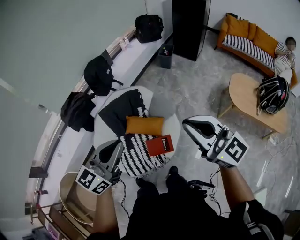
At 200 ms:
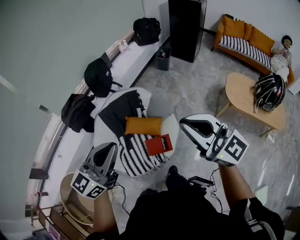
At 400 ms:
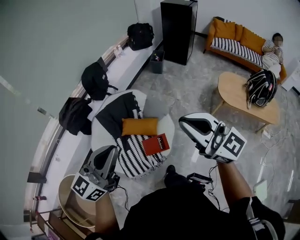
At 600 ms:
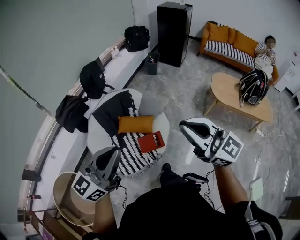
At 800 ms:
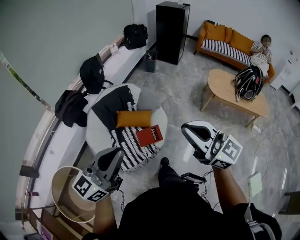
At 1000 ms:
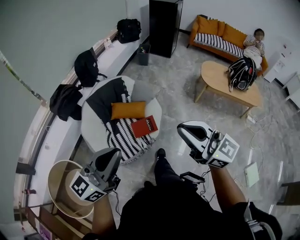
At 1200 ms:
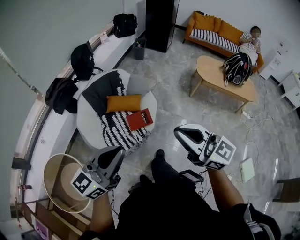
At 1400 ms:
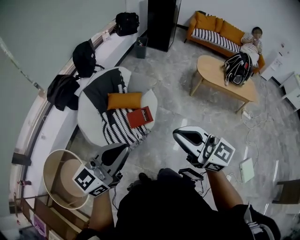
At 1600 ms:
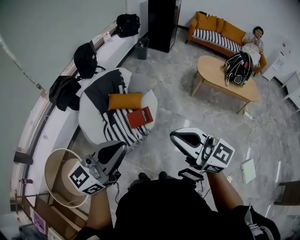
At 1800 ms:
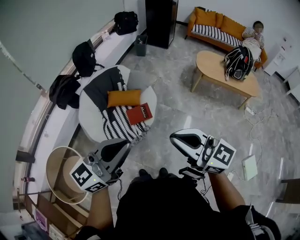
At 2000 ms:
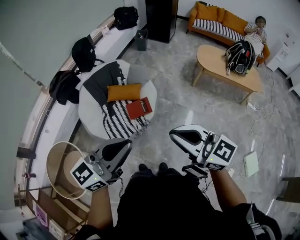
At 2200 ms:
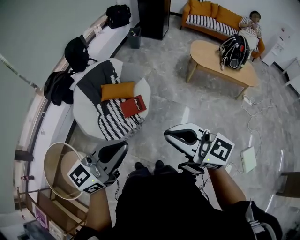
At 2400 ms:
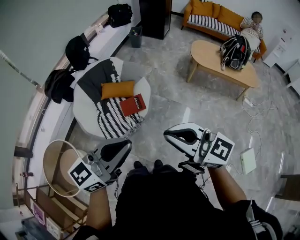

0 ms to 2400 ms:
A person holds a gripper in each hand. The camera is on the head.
0 ms to 1200 ms: The two grippers go some 35 cm backward.
1200 ms to 2400 ms: The left gripper shifts roughly 20 cm to the right and backward, while the right gripper moves backward and to the right, some 15 cm.

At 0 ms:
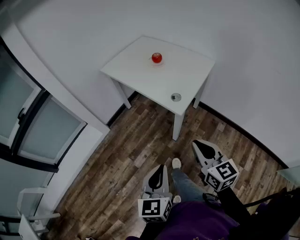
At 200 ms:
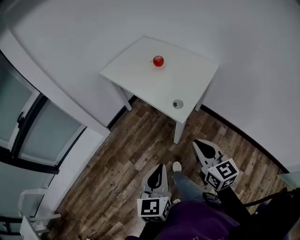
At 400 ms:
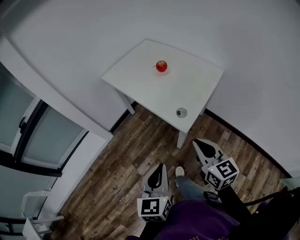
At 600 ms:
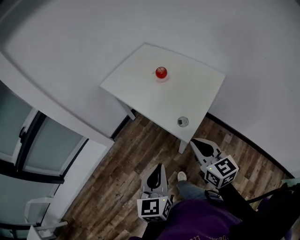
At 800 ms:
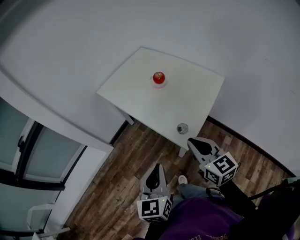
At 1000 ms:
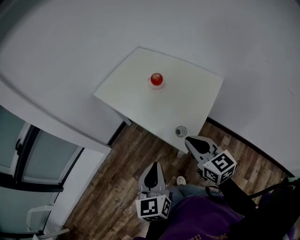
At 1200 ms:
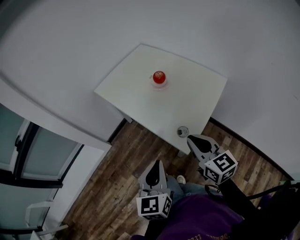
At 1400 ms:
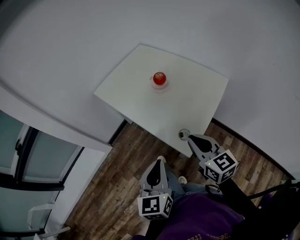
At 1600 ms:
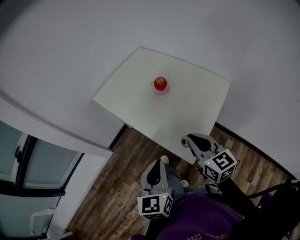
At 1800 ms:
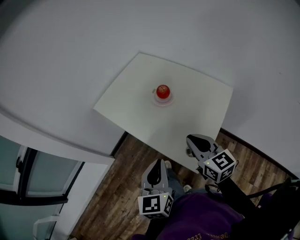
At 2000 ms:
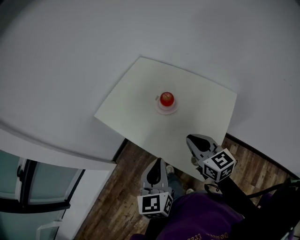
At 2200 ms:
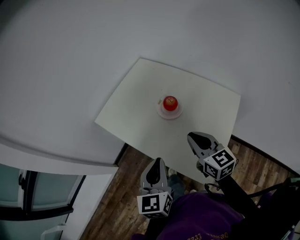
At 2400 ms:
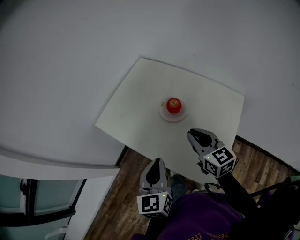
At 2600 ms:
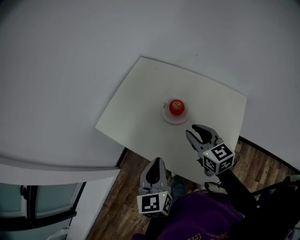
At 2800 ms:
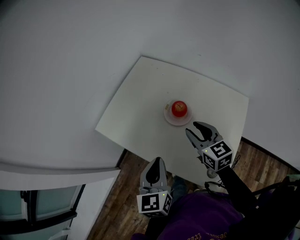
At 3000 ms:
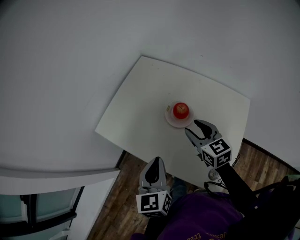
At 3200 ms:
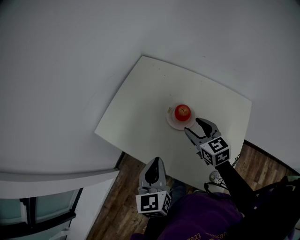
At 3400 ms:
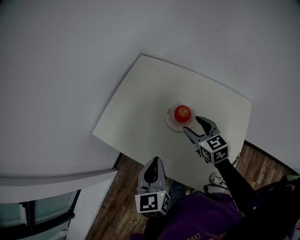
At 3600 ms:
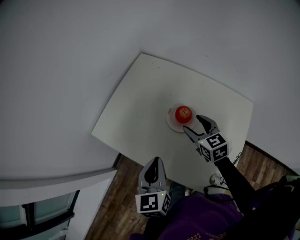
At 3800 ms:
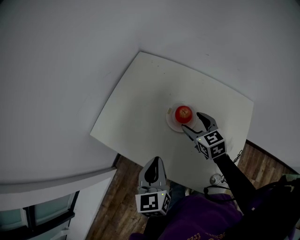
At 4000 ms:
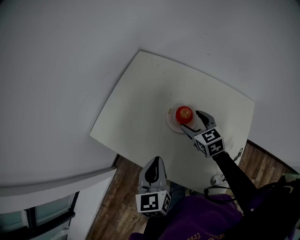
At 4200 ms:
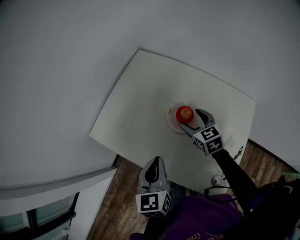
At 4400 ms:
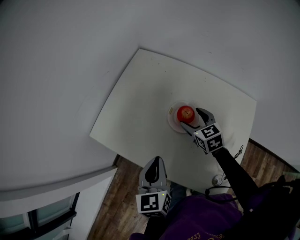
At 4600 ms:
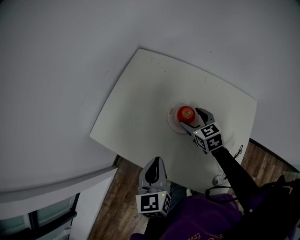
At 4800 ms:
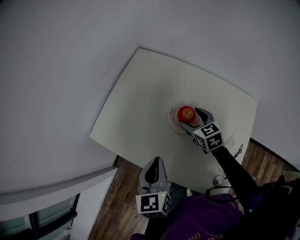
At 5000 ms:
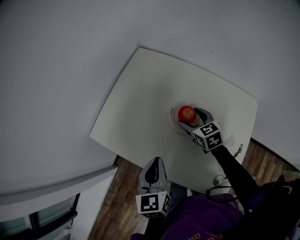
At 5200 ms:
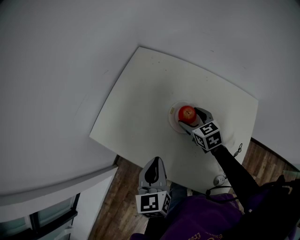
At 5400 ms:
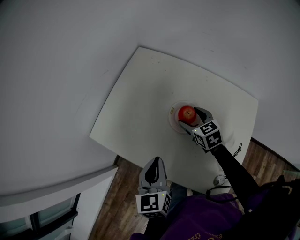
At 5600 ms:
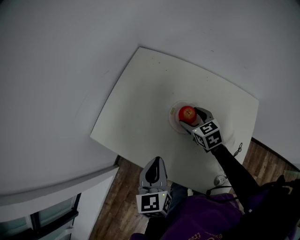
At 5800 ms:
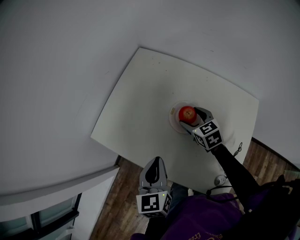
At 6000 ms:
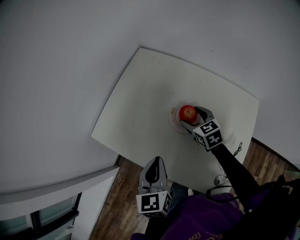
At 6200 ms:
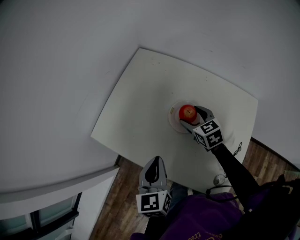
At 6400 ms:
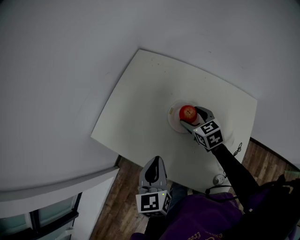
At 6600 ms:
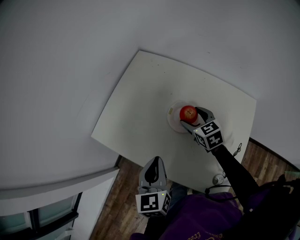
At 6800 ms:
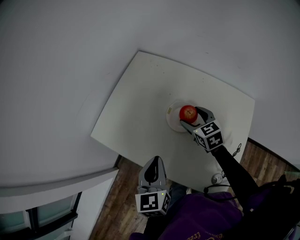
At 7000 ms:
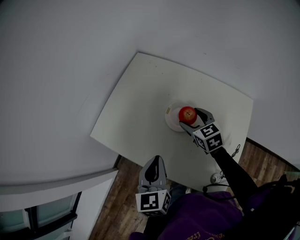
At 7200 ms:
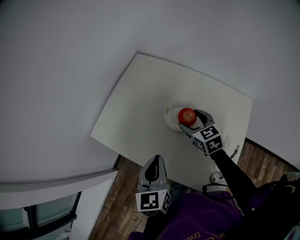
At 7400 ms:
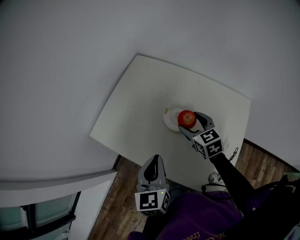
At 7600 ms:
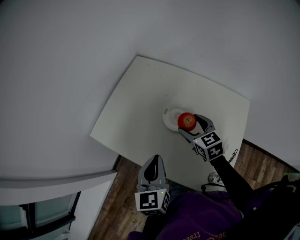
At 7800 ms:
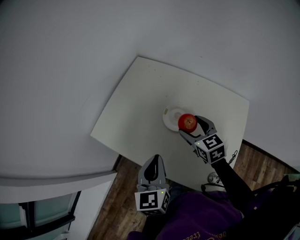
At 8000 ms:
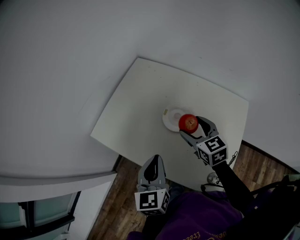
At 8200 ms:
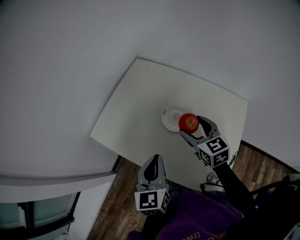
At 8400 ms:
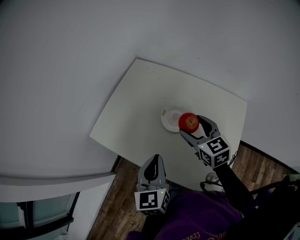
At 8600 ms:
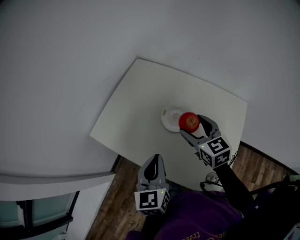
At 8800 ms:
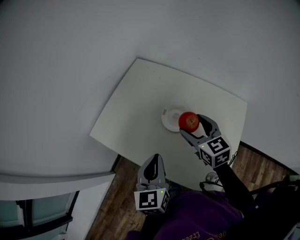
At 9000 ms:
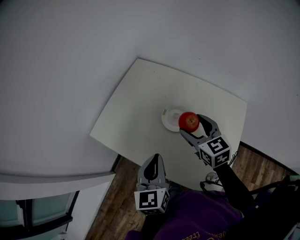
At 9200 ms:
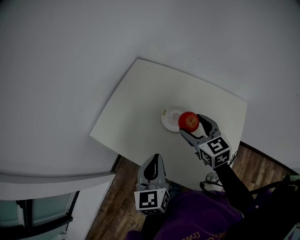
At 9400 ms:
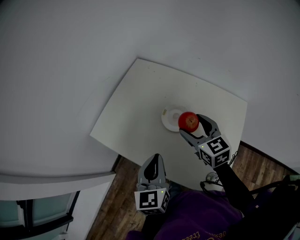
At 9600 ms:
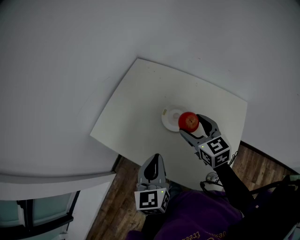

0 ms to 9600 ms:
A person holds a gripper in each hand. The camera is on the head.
0 ms to 1600 ms: The two grippers go approximately 30 cm forward.
1600 ms to 3200 ms: Both grippers move forward, some 30 cm. The right gripper opens up.
3200 ms to 4800 ms: The right gripper moves downward and forward, some 10 cm. The left gripper ends up some 5 cm from where it was.
4800 ms to 6400 ms: Both grippers stay about where they are.
6400 ms to 8000 ms: The right gripper travels upward and backward by approximately 10 cm.
8000 ms to 9600 ms: The grippers stay close to where they were, moving slightly.

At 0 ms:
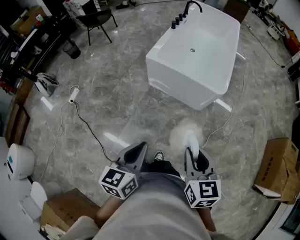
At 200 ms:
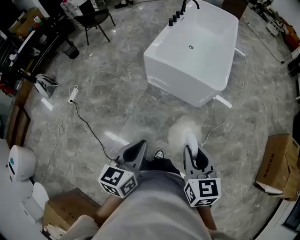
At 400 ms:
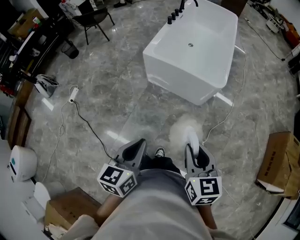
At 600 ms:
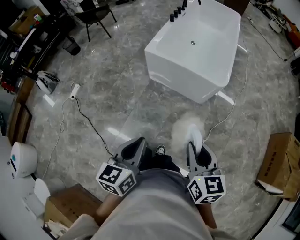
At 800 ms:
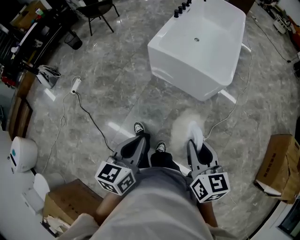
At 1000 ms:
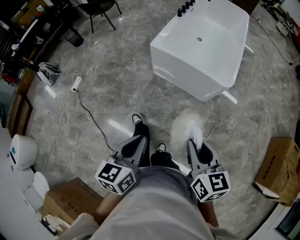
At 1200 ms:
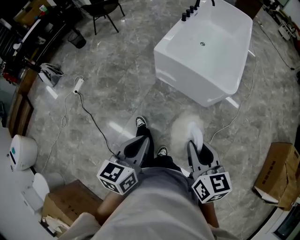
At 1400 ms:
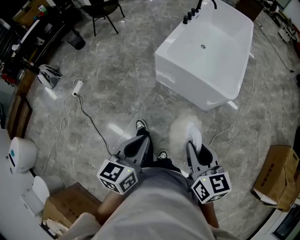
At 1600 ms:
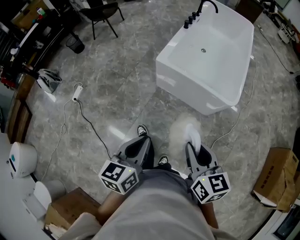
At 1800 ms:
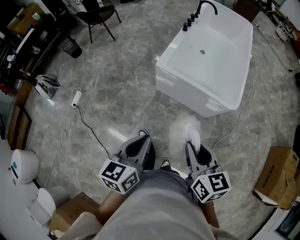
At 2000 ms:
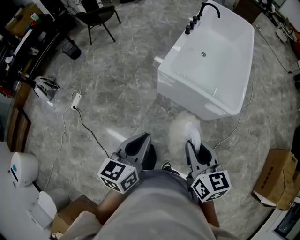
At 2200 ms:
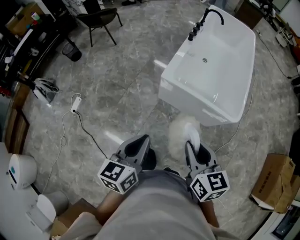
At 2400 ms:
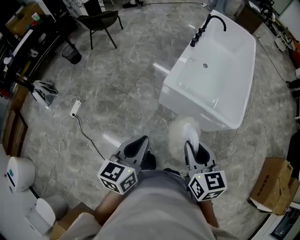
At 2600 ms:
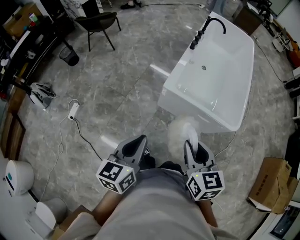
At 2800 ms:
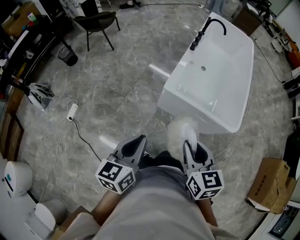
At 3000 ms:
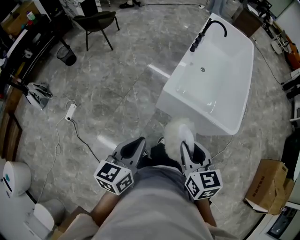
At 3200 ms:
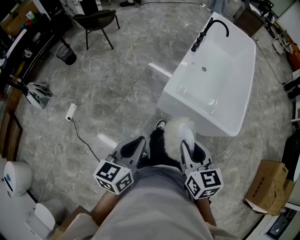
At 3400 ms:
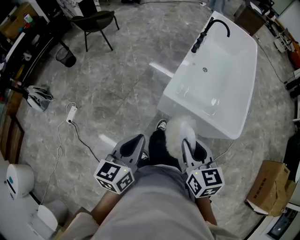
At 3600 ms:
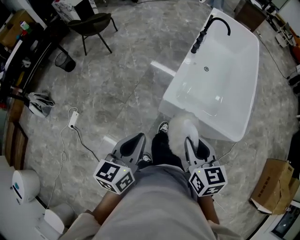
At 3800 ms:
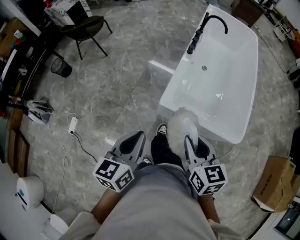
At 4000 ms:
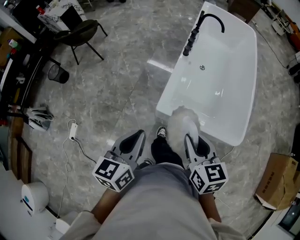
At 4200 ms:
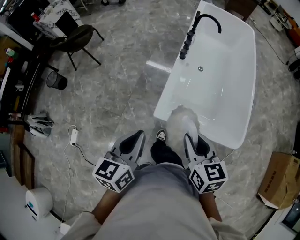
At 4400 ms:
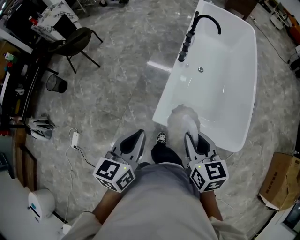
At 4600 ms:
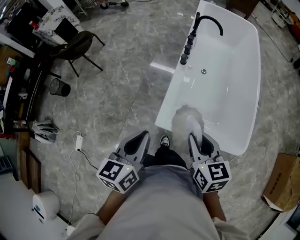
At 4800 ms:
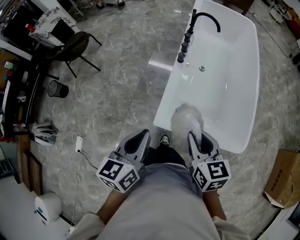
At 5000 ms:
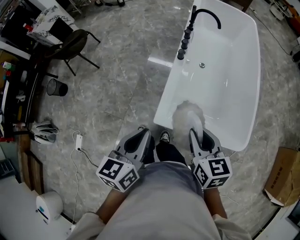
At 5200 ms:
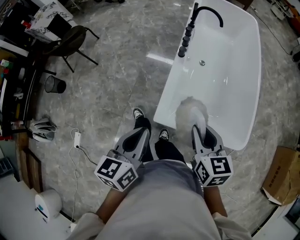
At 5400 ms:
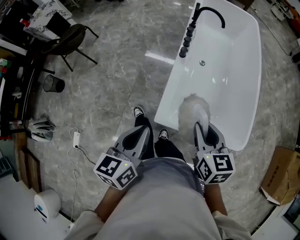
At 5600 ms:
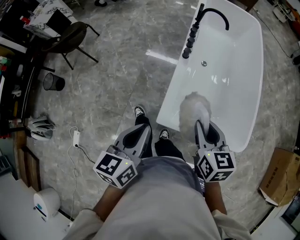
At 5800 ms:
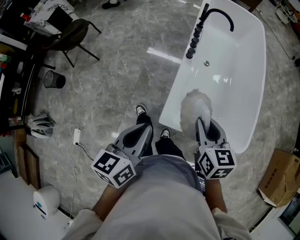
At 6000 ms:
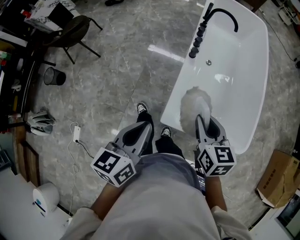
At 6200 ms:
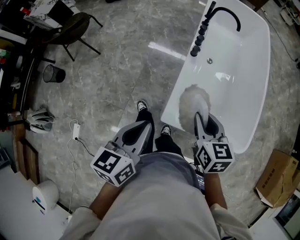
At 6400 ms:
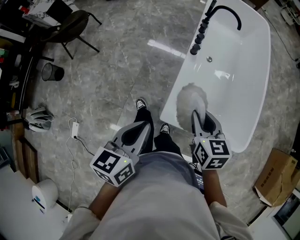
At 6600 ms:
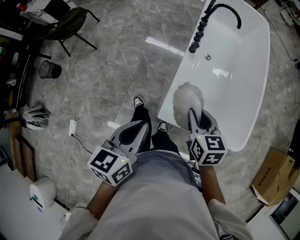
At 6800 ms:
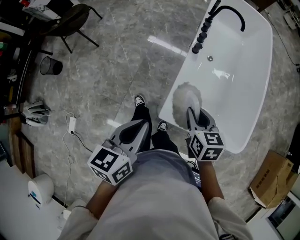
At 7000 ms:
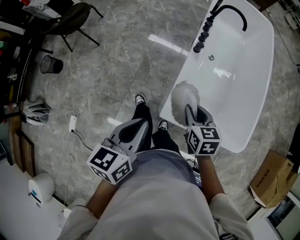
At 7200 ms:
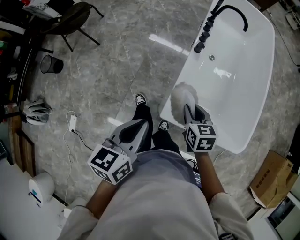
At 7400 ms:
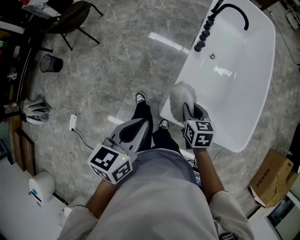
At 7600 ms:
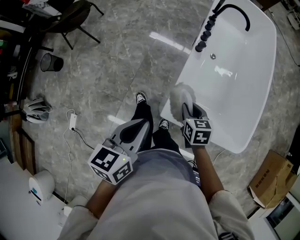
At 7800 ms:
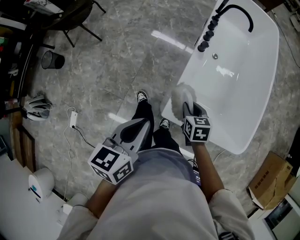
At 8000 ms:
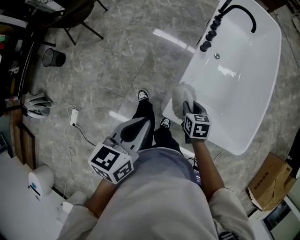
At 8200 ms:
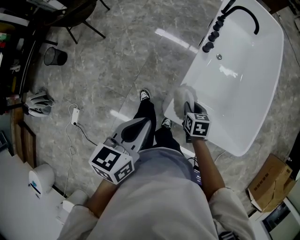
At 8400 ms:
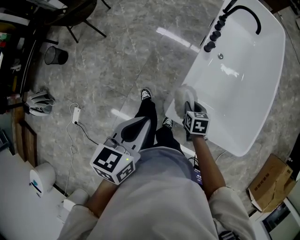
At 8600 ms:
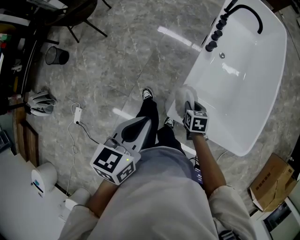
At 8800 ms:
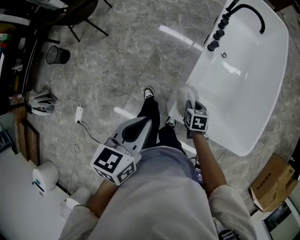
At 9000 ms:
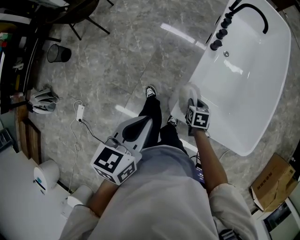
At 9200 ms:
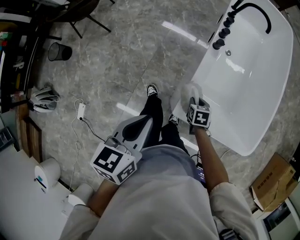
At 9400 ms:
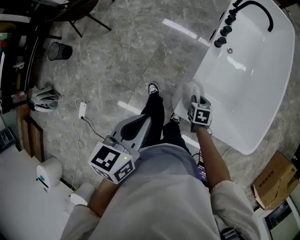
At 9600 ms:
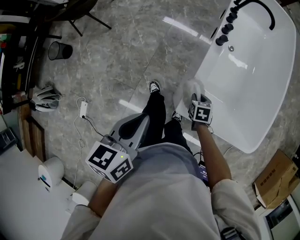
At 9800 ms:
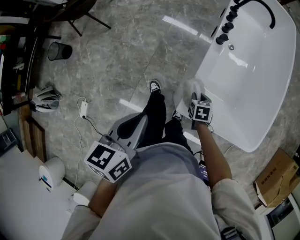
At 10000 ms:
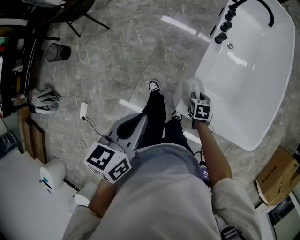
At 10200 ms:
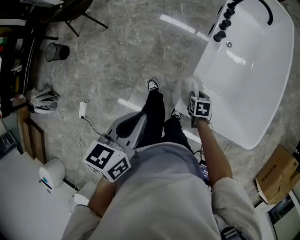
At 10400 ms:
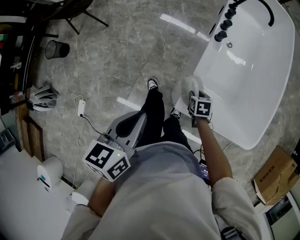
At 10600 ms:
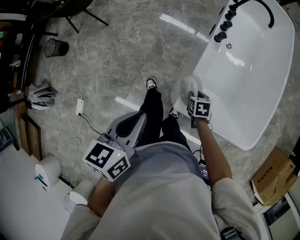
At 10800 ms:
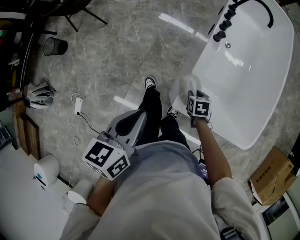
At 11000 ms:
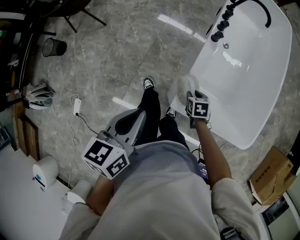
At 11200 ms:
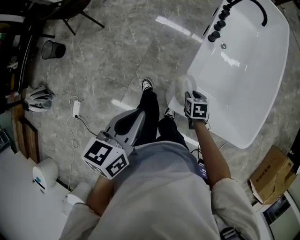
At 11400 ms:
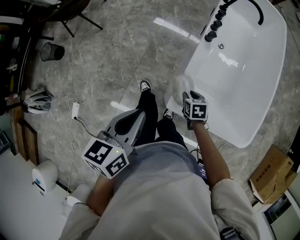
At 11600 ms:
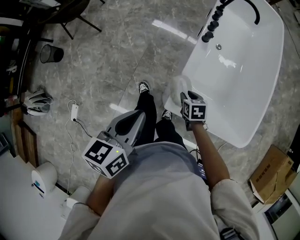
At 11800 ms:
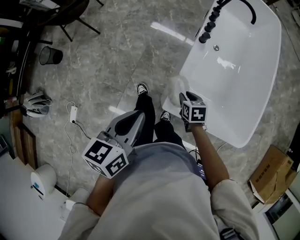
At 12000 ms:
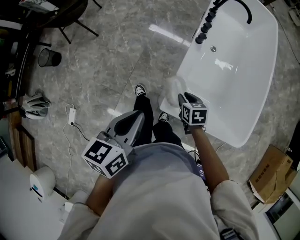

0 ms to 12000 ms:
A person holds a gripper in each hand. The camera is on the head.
0 ms to 1600 ms: The grippers both shift forward and to the left by about 15 cm.
1600 ms to 3000 ms: The two grippers go roughly 25 cm forward and to the left.
3000 ms to 4400 ms: The grippers both shift forward by approximately 30 cm.
4400 ms to 6000 ms: Both grippers move forward, some 10 cm.
6000 ms to 7600 ms: The right gripper is displaced downward by approximately 15 cm.
7600 ms to 9000 ms: The right gripper goes about 15 cm downward.
9000 ms to 10400 ms: The grippers make only small movements.
10400 ms to 12000 ms: The left gripper travels to the right by approximately 5 cm. The right gripper goes approximately 10 cm upward.
